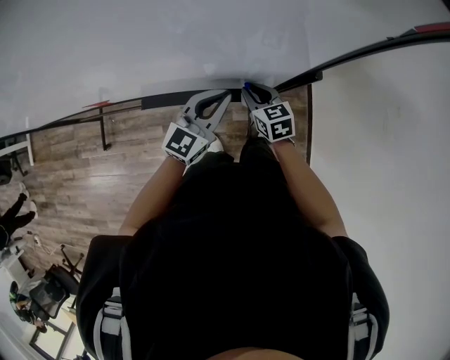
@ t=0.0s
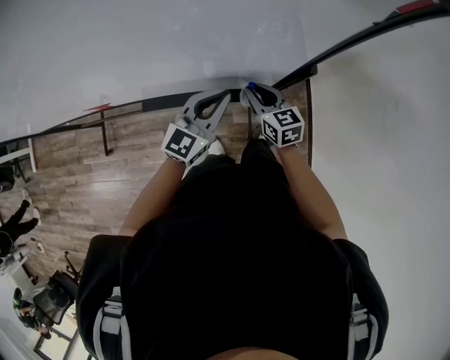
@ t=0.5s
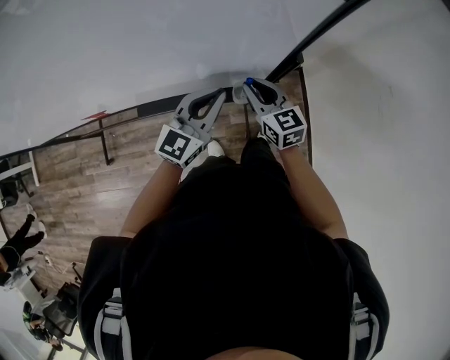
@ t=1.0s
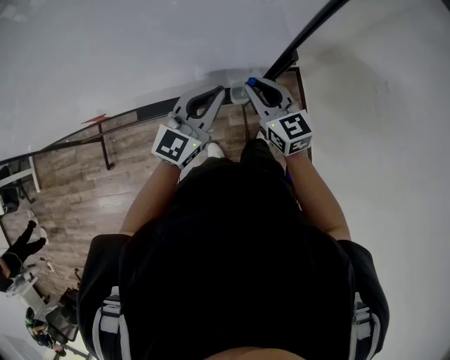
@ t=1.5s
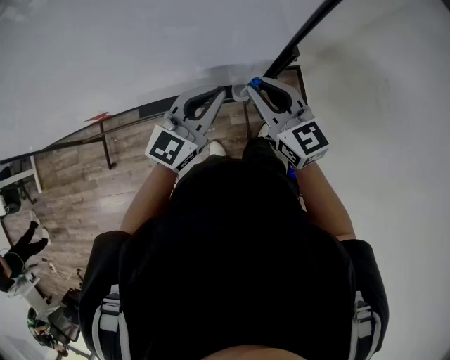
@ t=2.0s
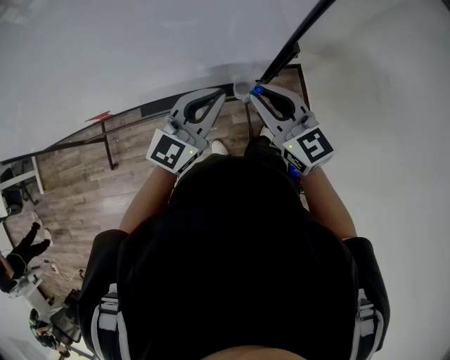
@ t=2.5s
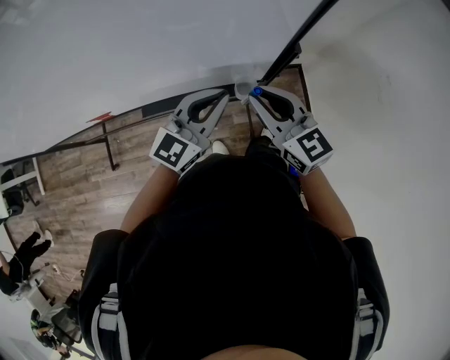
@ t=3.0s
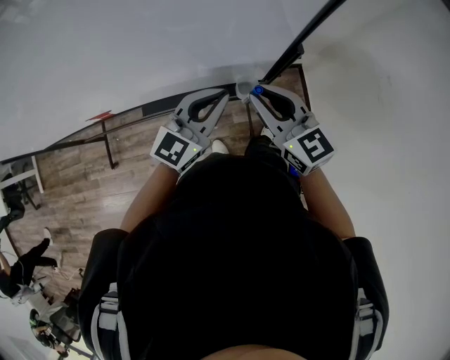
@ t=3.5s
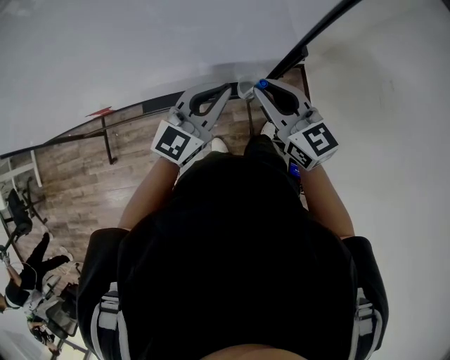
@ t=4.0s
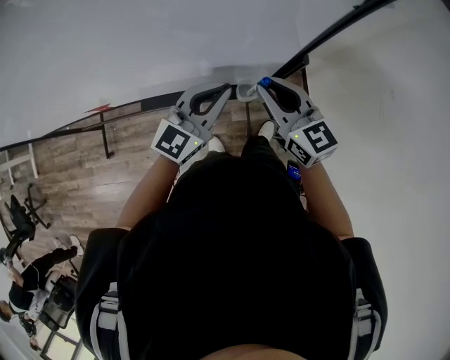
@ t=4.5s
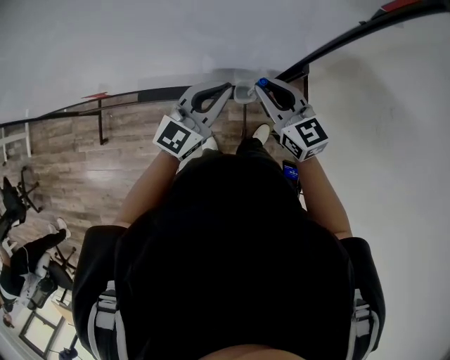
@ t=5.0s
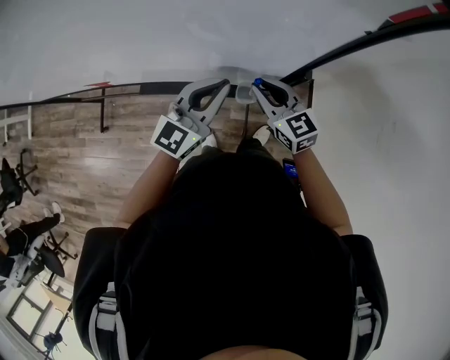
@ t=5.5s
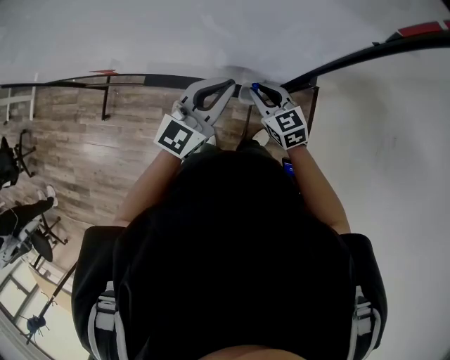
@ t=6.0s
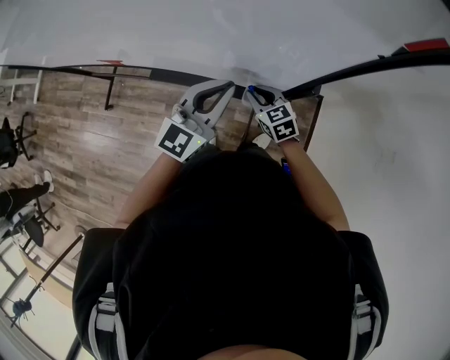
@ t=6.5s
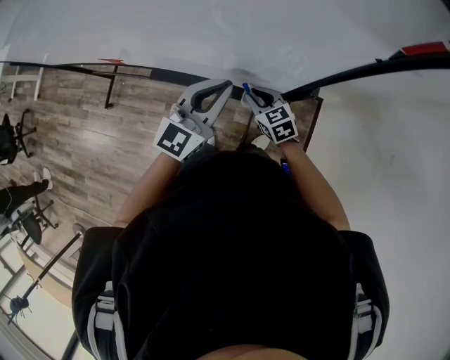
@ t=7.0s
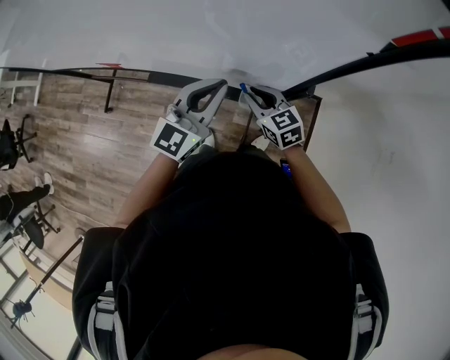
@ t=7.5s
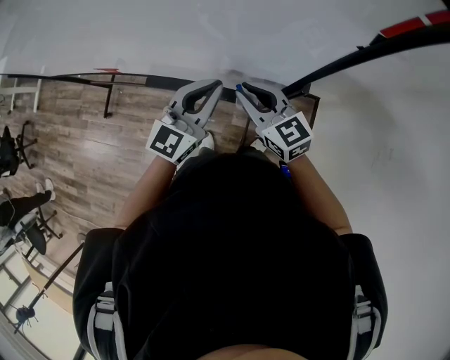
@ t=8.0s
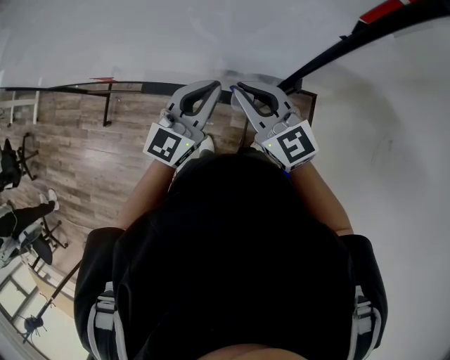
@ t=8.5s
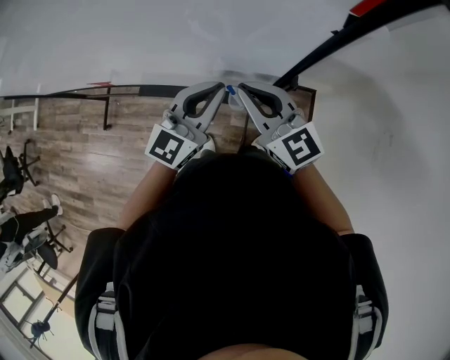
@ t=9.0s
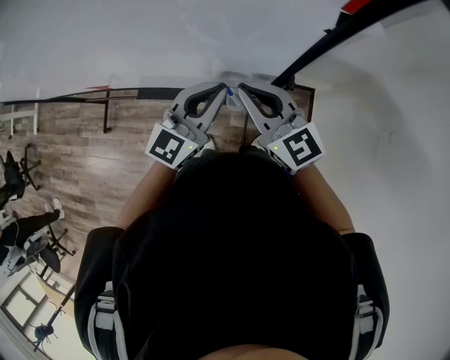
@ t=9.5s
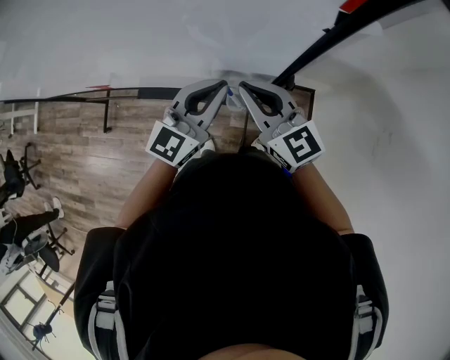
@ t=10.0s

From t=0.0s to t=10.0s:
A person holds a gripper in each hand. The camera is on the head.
From t=0.0s to t=2.0s: The left gripper shifts about 10 cm upward. The right gripper is displaced upward by about 20 cm, and changes its angle by some 30 degrees.
From t=2.0s to t=4.0s: The grippers make only small movements.
From t=4.0s to t=6.0s: The right gripper is displaced downward by approximately 15 cm, and changes its angle by about 30 degrees.
From t=6.0s to t=8.0s: The right gripper moves upward, approximately 10 cm.
From t=8.0s to t=10.0s: The left gripper shifts by roughly 5 cm; the right gripper shifts roughly 5 cm upward.

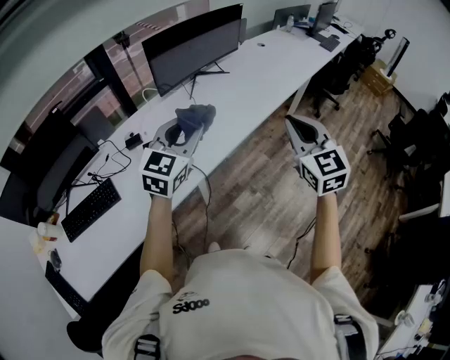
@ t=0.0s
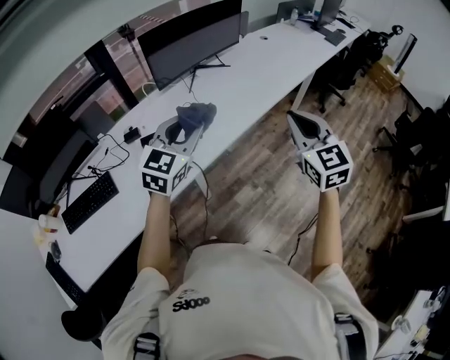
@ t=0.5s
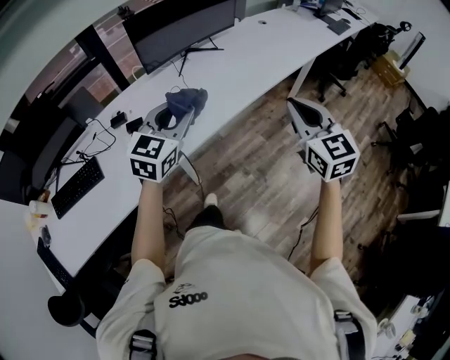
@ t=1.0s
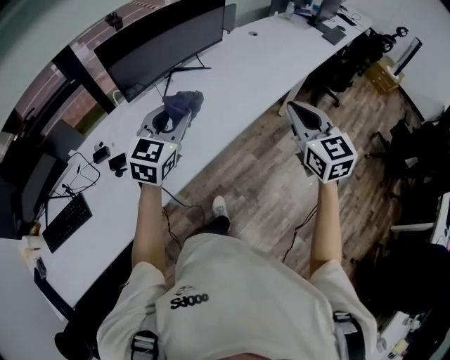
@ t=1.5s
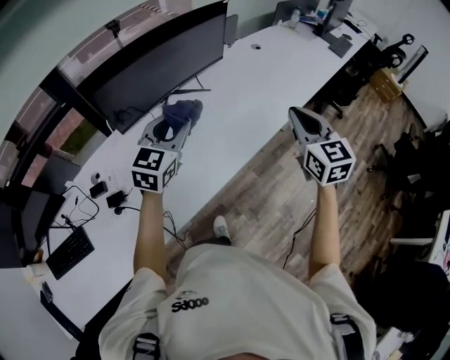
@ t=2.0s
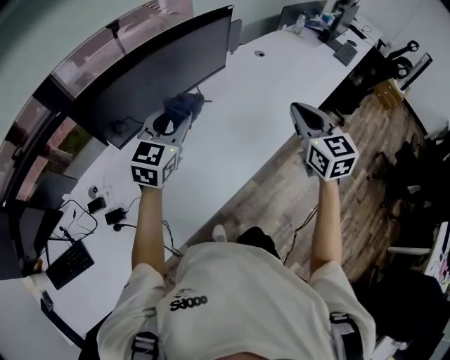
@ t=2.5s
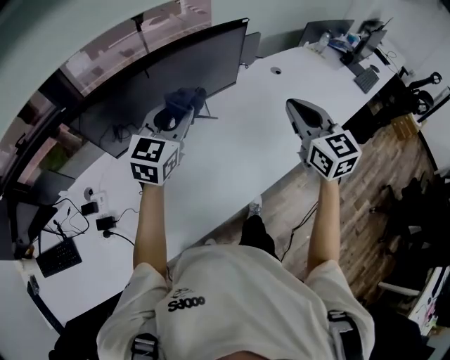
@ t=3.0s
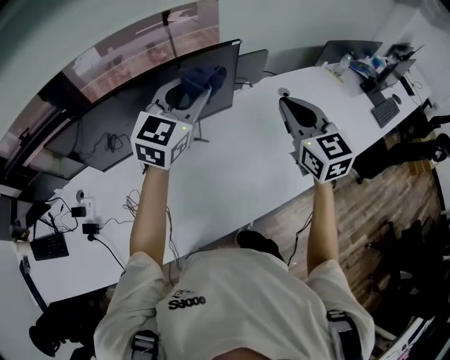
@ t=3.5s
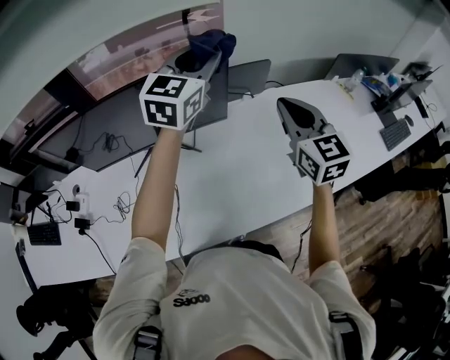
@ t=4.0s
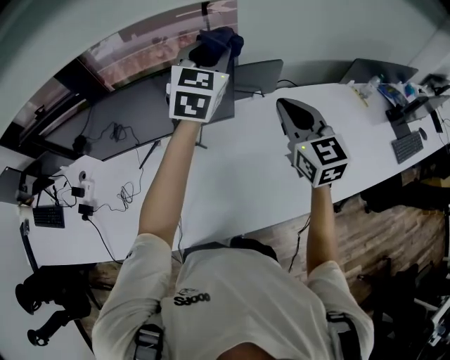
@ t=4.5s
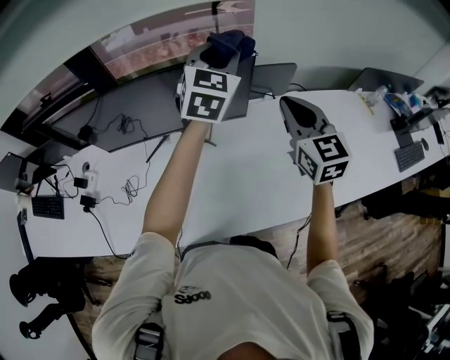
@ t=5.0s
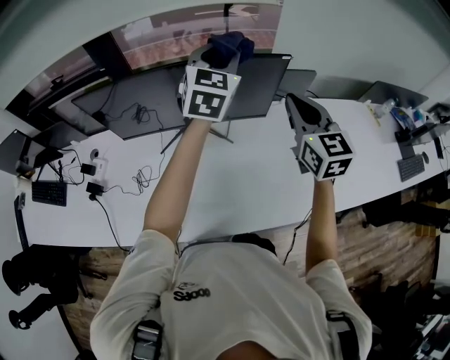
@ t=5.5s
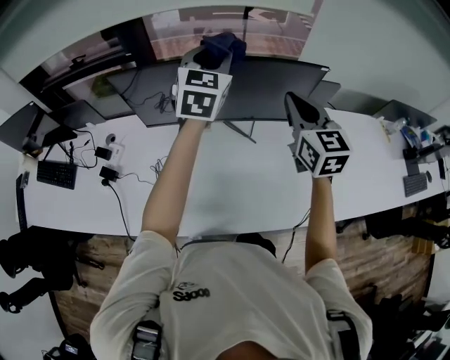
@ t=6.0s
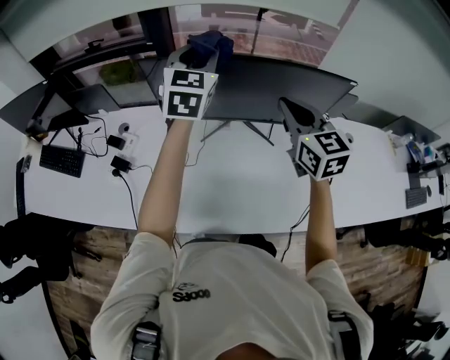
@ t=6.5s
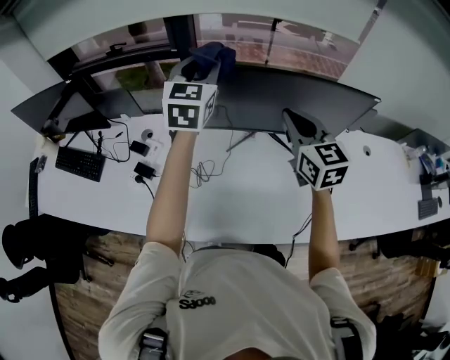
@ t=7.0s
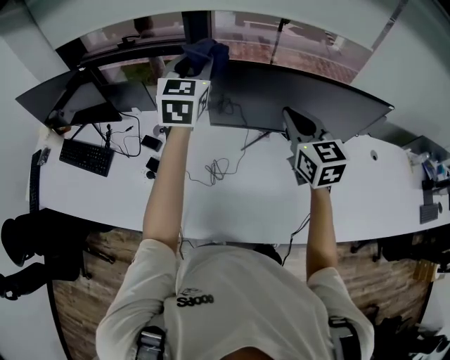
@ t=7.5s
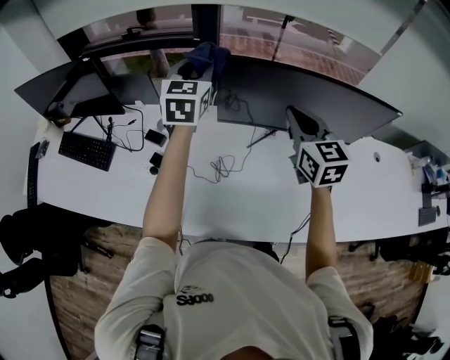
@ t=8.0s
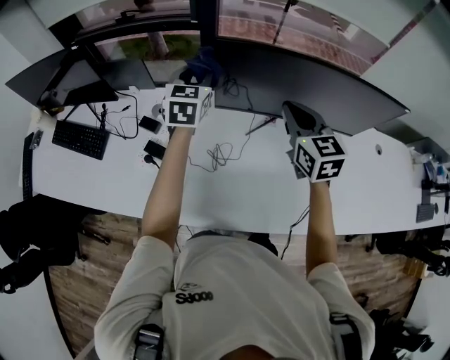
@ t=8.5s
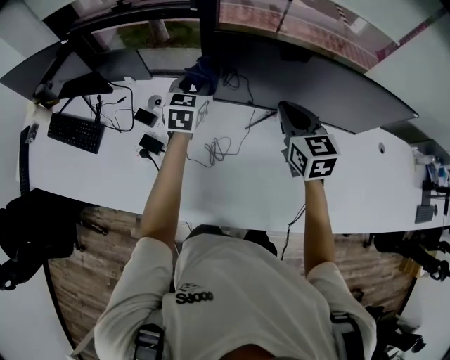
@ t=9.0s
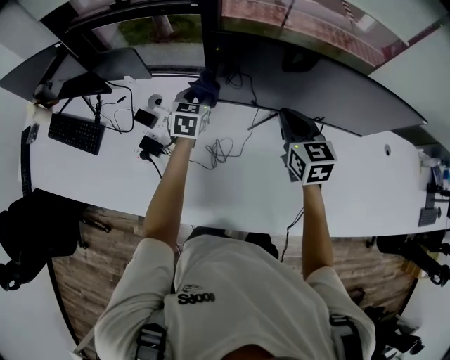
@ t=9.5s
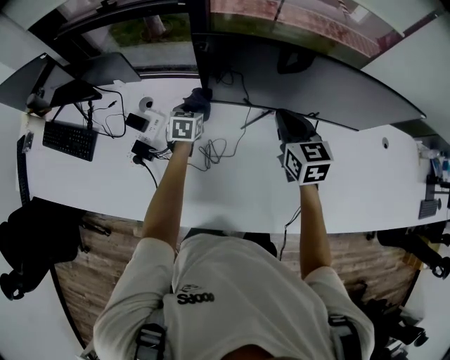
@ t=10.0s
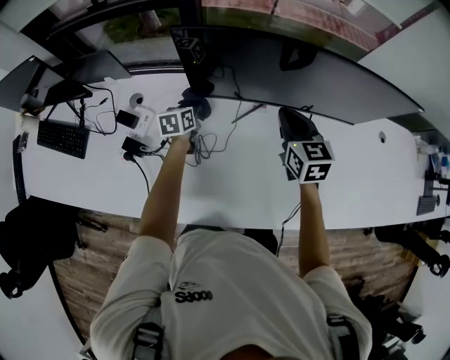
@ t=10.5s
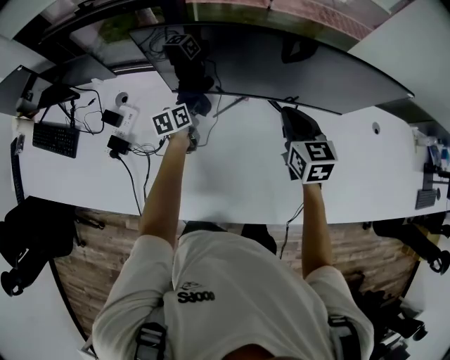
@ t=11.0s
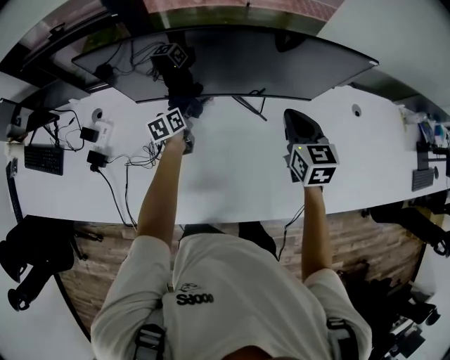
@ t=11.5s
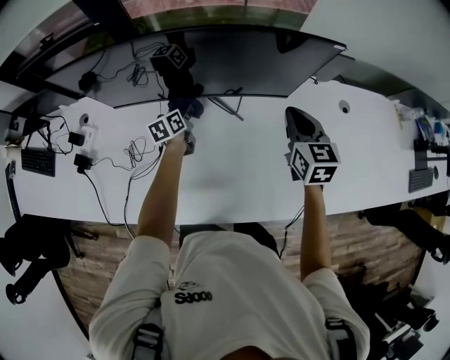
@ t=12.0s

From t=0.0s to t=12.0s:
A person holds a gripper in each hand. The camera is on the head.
From t=0.0s to t=2.0s: The grippers both shift forward by some 35 cm.
From t=2.0s to t=4.0s: The two grippers travel together, forward, about 50 cm. The left gripper swivels about 20 degrees; the right gripper turns by approximately 30 degrees.
From t=4.0s to t=6.0s: Both grippers travel together to the left, some 25 cm. The left gripper turns by roughly 30 degrees.
From t=6.0s to t=8.0s: The two grippers go roughly 35 cm to the left.
From t=8.0s to t=10.0s: The left gripper moves downward, approximately 35 cm, and points its fingers some 30 degrees further downward. The right gripper heads downward, covering roughly 15 cm.
From t=10.0s to t=12.0s: The grippers both shift to the right by about 35 cm. The left gripper changes its angle by approximately 30 degrees.

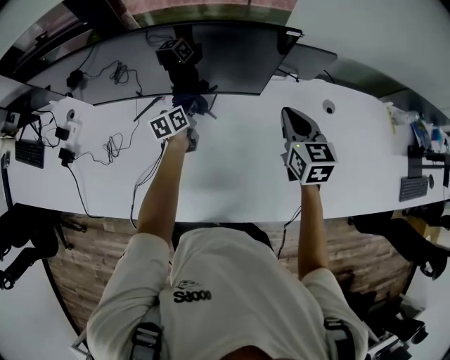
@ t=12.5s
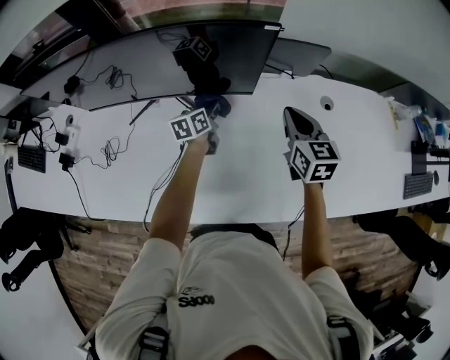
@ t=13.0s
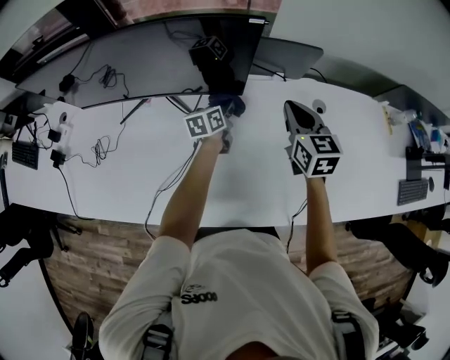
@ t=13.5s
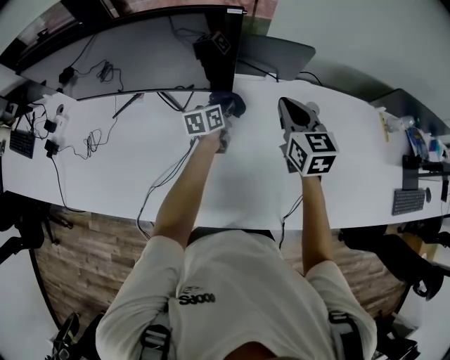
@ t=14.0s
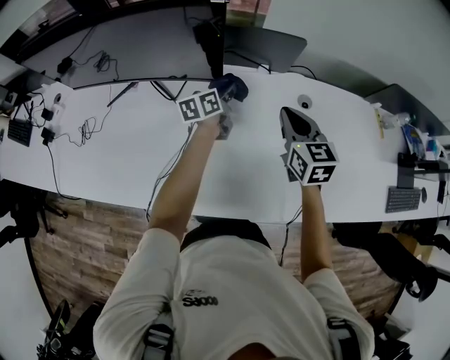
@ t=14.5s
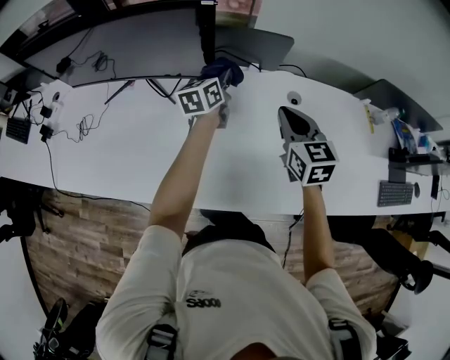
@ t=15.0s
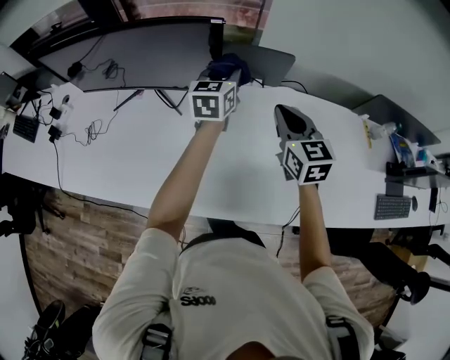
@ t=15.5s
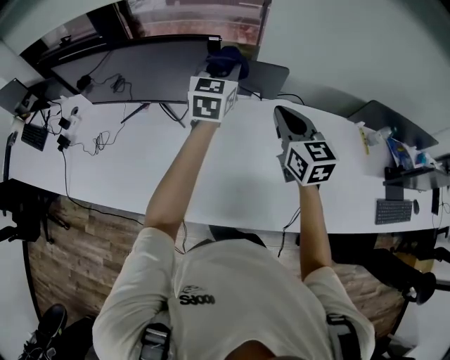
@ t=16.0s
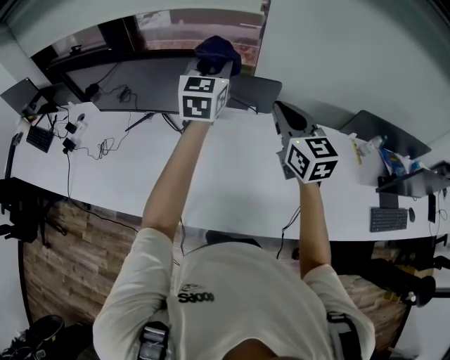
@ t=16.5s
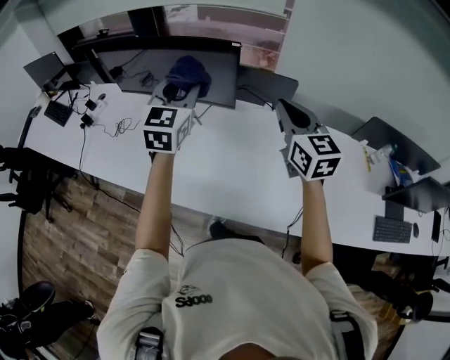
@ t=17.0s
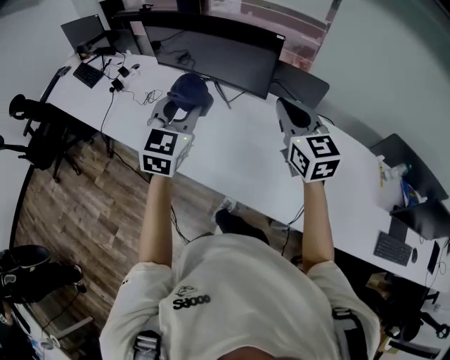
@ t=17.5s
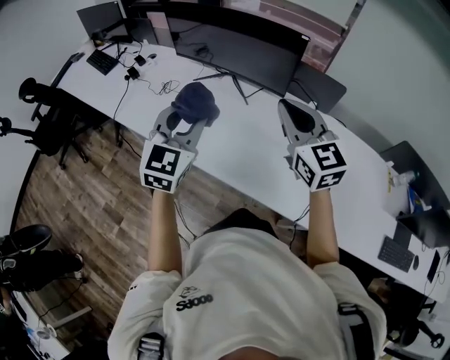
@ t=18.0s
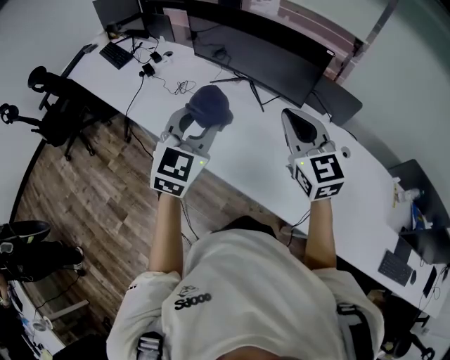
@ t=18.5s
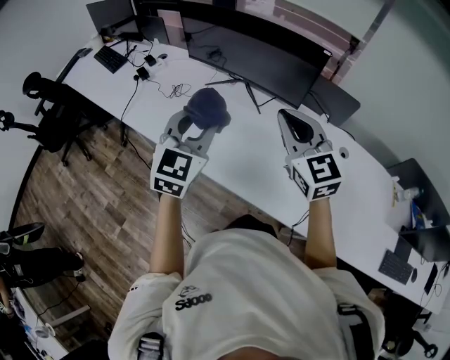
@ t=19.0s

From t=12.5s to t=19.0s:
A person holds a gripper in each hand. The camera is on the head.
From t=12.5s to t=14.5s: The right gripper shifts some 15 cm to the right, while the left gripper heads to the right, covering some 25 cm.
From t=14.5s to t=17.0s: The right gripper travels upward and backward by approximately 25 cm, and rotates approximately 20 degrees, while the left gripper is displaced upward and backward by about 40 cm, and rotates around the line of its fingers by roughly 50 degrees, clockwise from behind.
From t=17.0s to t=19.0s: The left gripper shifts approximately 25 cm to the left and backward. The right gripper heads to the left, covering roughly 25 cm, and changes its angle by approximately 30 degrees.
